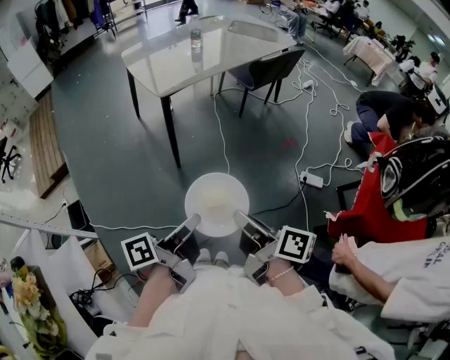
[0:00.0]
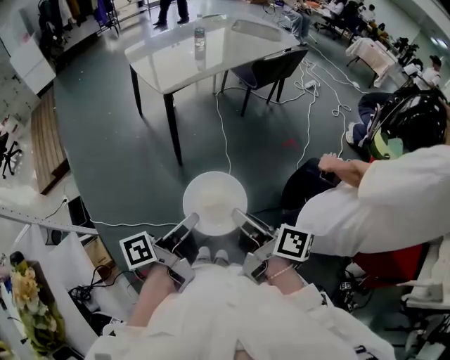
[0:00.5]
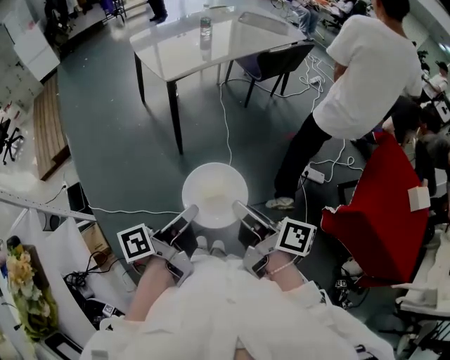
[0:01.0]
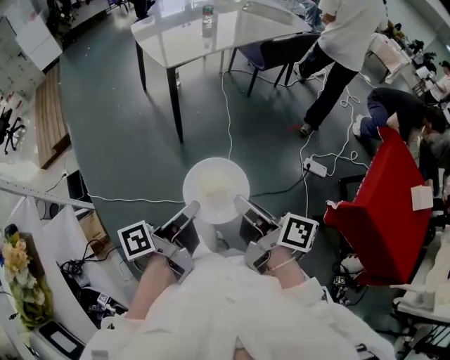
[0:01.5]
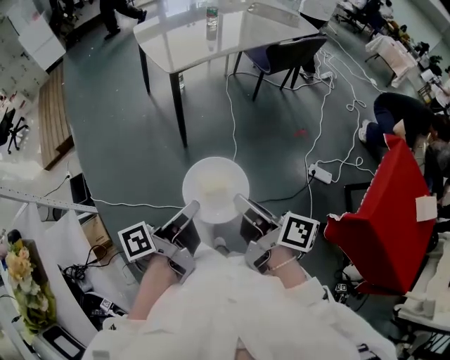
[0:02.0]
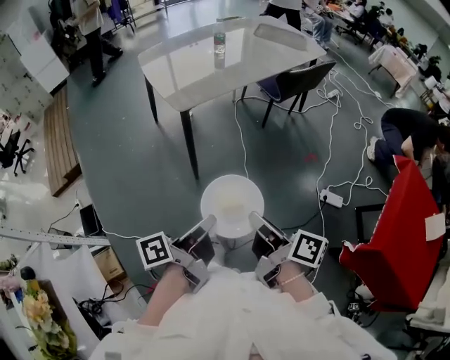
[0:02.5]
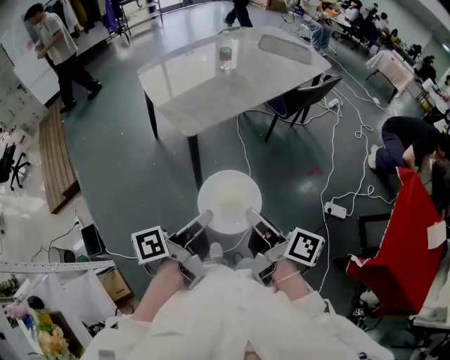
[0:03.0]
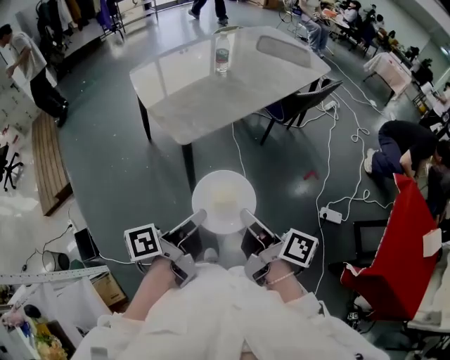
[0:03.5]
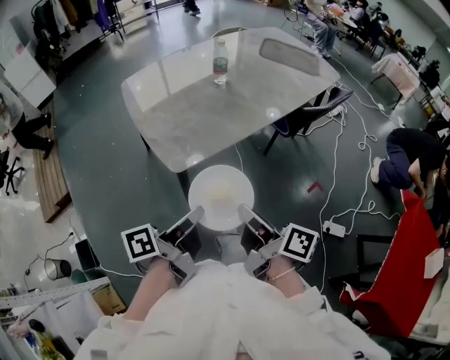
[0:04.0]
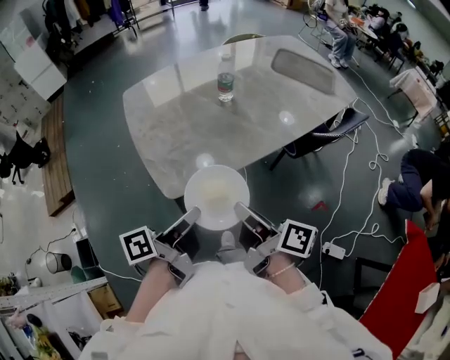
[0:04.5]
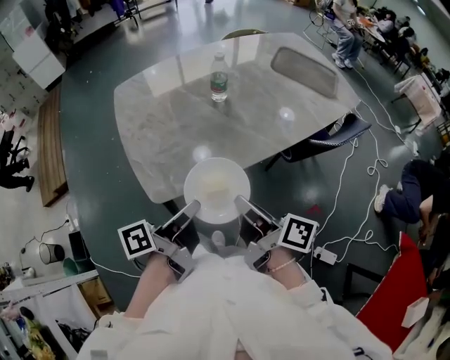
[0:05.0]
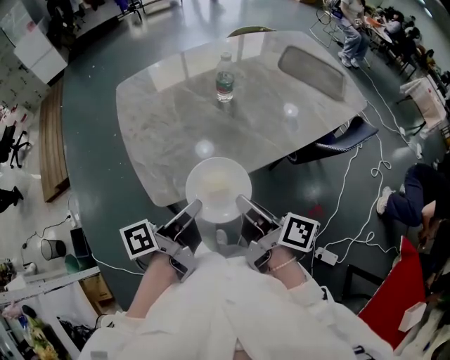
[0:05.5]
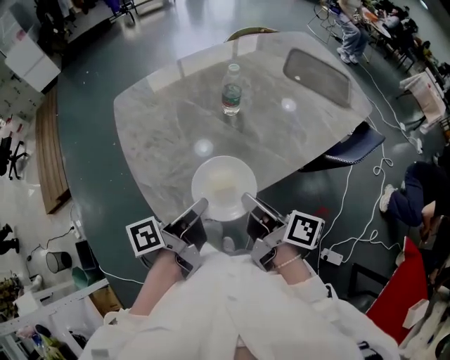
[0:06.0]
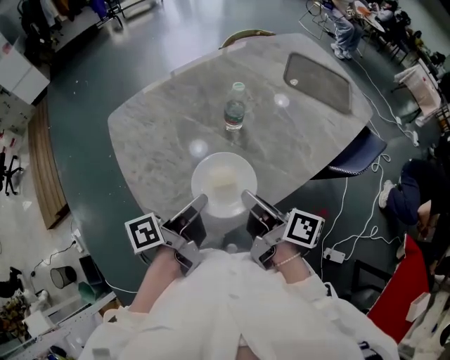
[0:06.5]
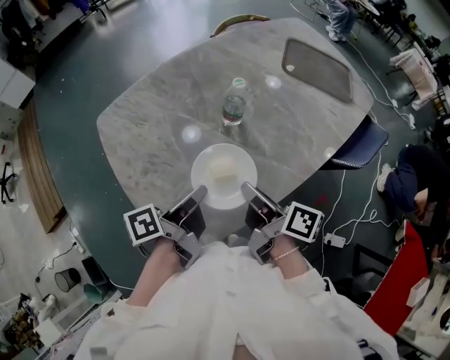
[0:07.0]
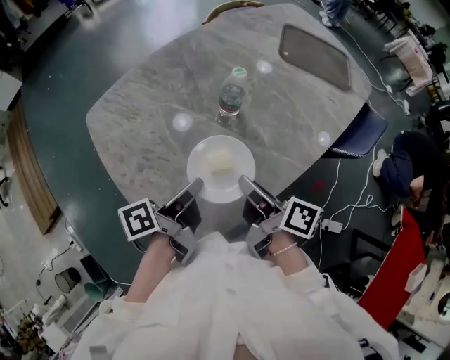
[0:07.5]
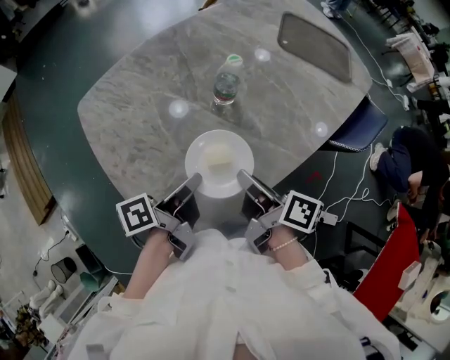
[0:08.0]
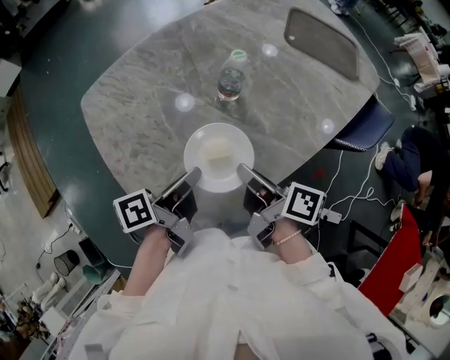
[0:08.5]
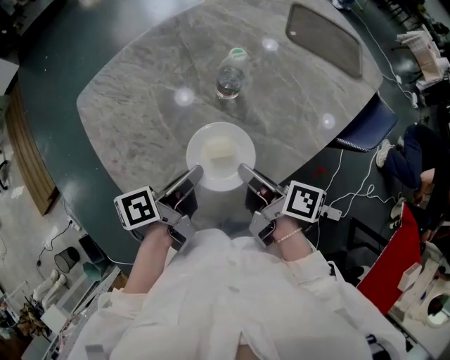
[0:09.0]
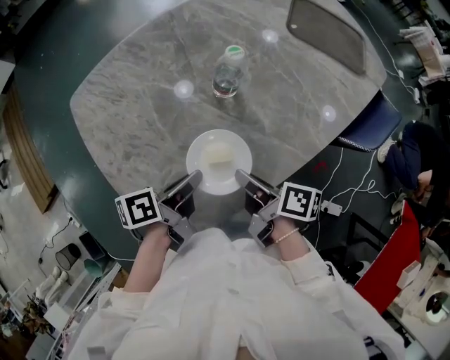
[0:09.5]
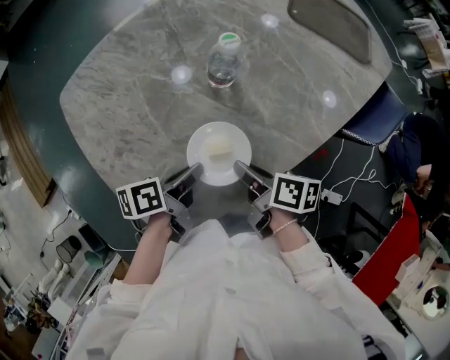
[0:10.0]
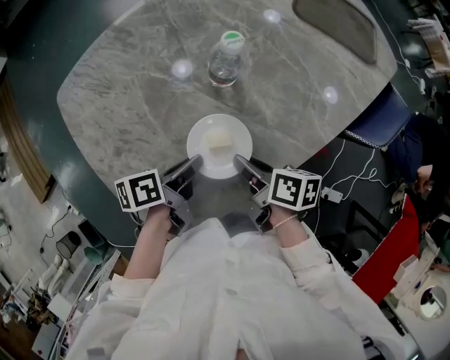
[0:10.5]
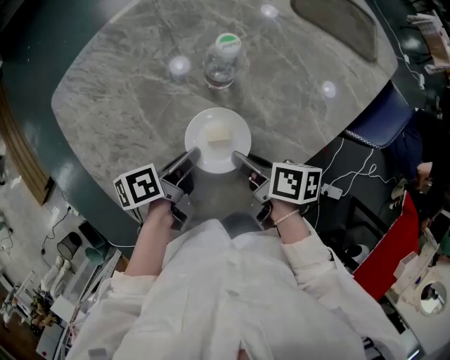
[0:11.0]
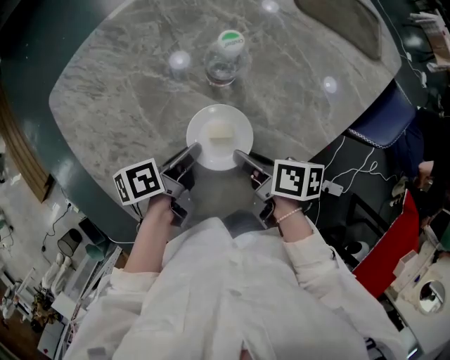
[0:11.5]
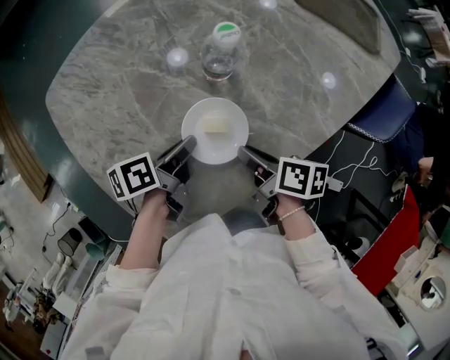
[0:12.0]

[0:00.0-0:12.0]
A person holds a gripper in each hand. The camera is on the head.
0:02.0 to 0:04.0: The right gripper moves roughly 40 cm.
0:04.0 to 0:06.0: The right gripper changes place by about 30 cm.
0:06.0 to 0:08.0: The right gripper ends up some 15 cm from where it was.
0:08.0 to 0:10.0: The right gripper travels downward by some 10 cm.

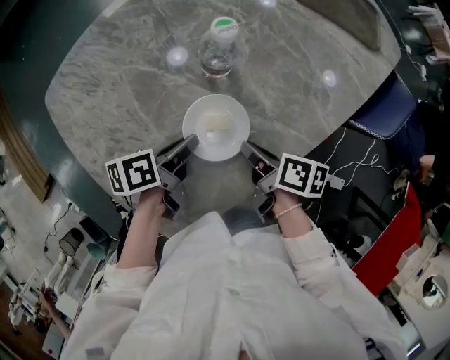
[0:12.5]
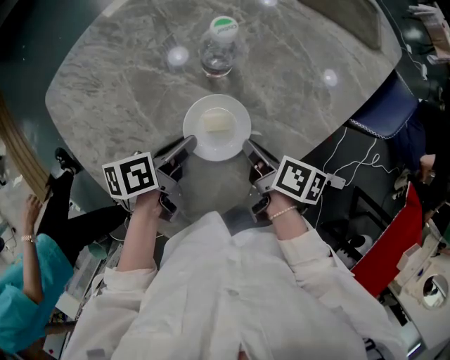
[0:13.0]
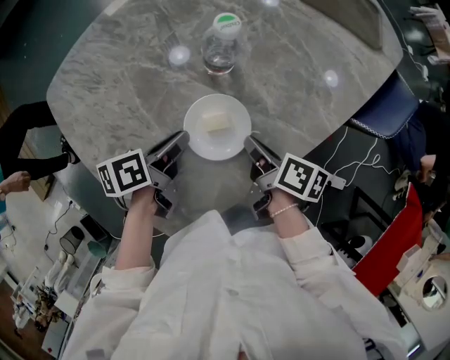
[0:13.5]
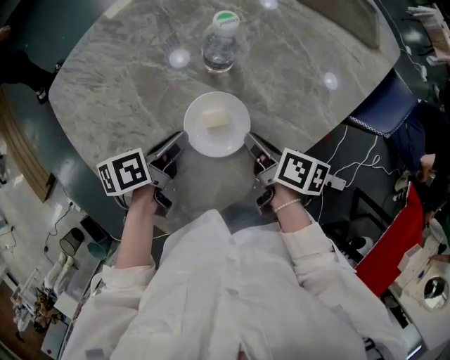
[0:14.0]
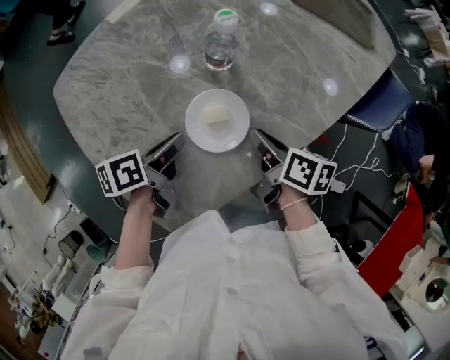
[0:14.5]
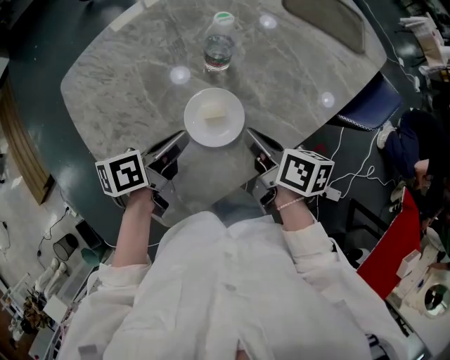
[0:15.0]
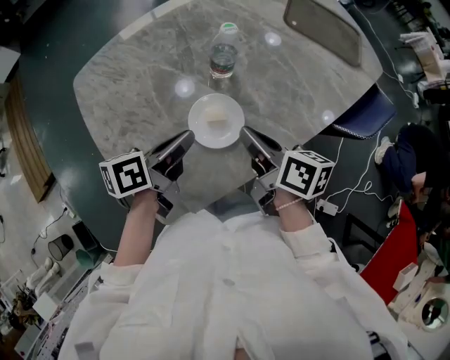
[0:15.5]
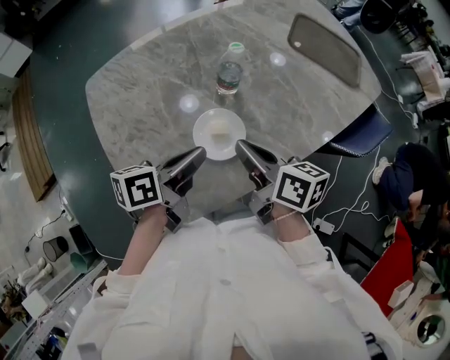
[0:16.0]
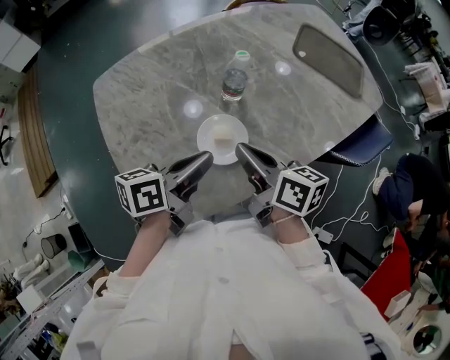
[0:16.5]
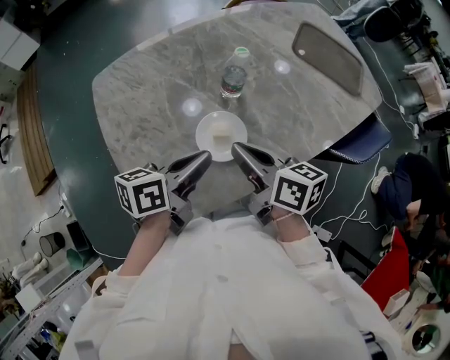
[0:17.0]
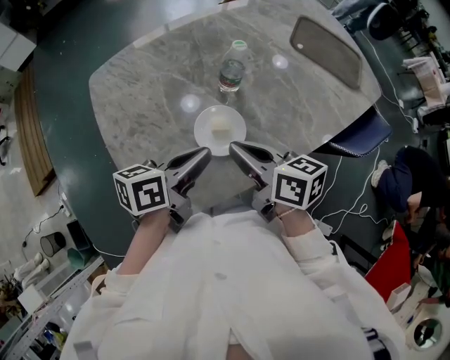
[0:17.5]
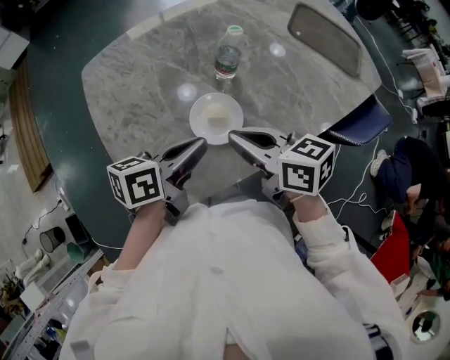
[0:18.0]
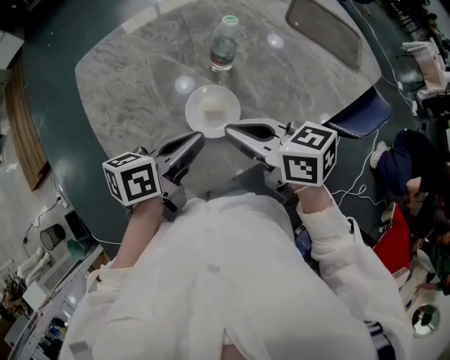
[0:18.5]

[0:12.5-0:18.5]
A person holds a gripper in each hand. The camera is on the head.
0:14.5 to 0:16.5: The right gripper moves upward, about 15 cm, and swivels some 30 degrees.
0:16.5 to 0:18.5: The right gripper swivels some 30 degrees.

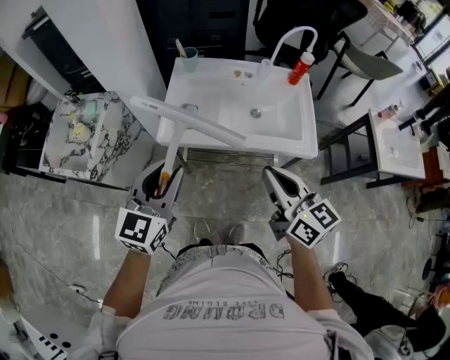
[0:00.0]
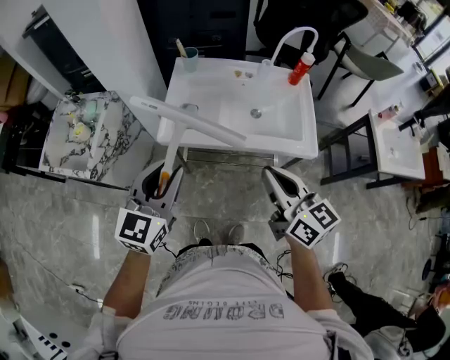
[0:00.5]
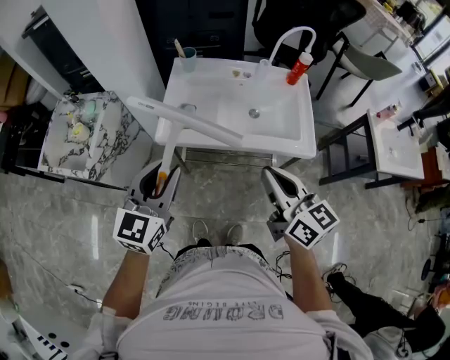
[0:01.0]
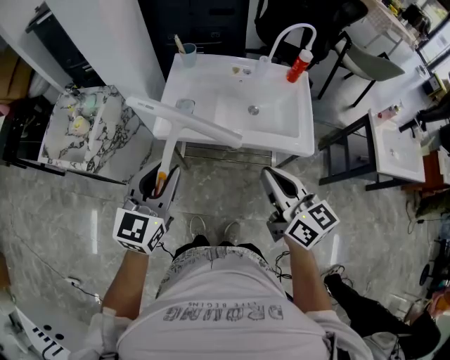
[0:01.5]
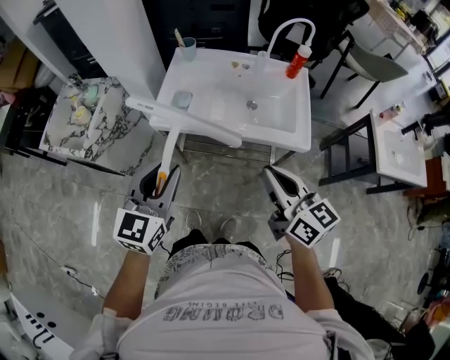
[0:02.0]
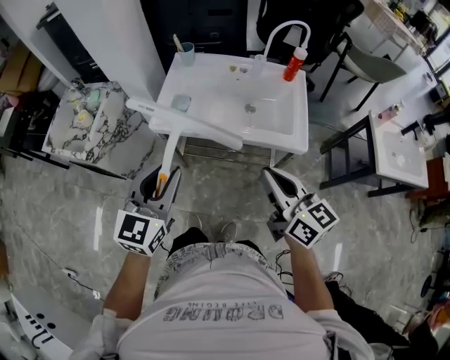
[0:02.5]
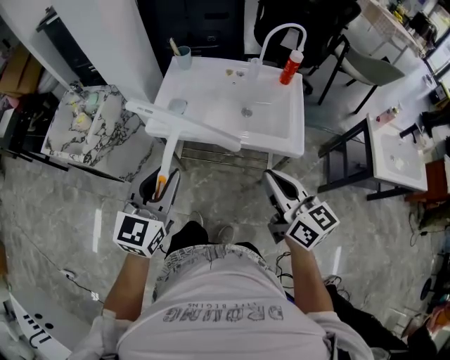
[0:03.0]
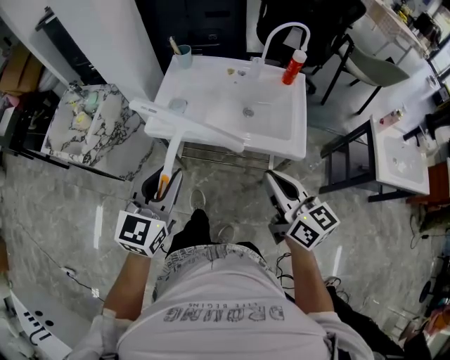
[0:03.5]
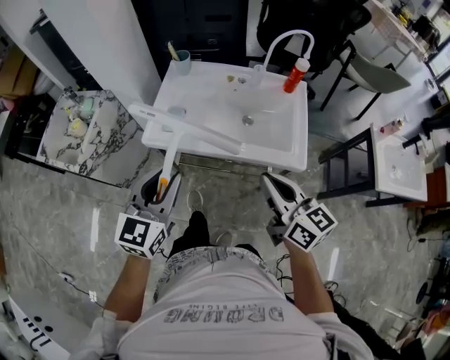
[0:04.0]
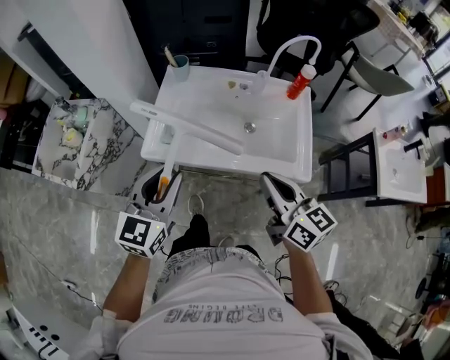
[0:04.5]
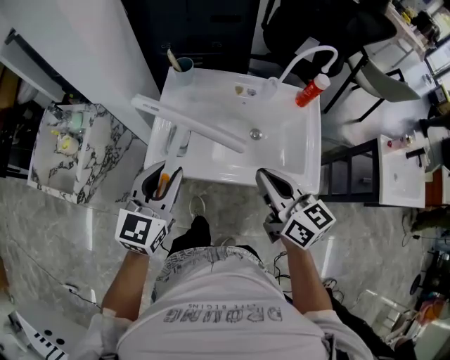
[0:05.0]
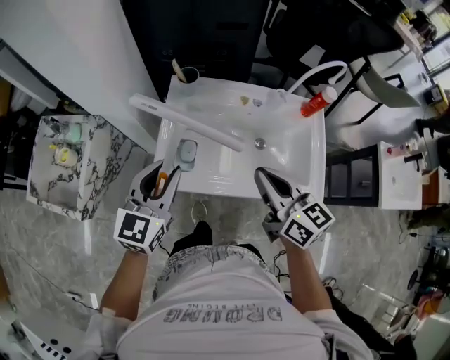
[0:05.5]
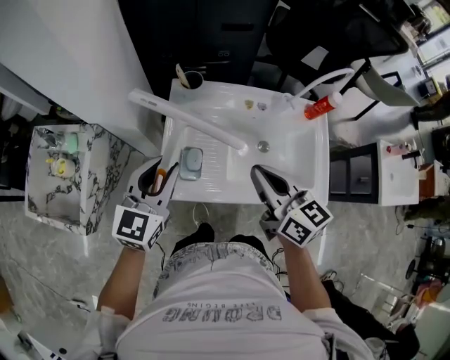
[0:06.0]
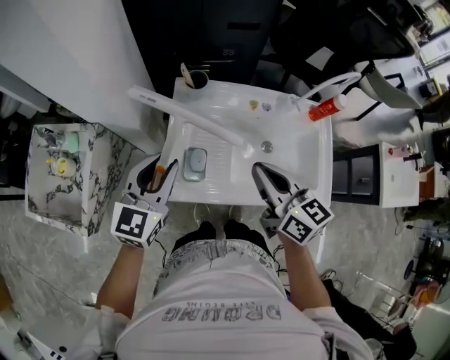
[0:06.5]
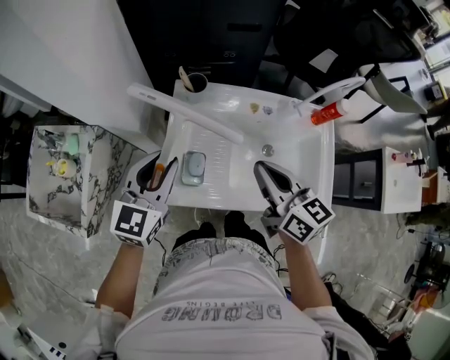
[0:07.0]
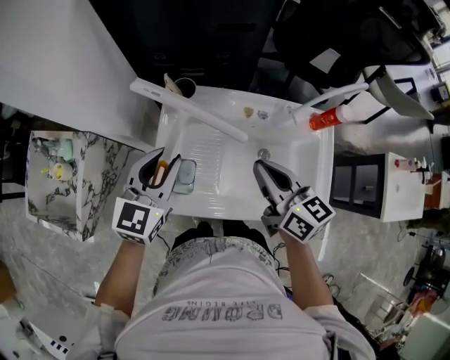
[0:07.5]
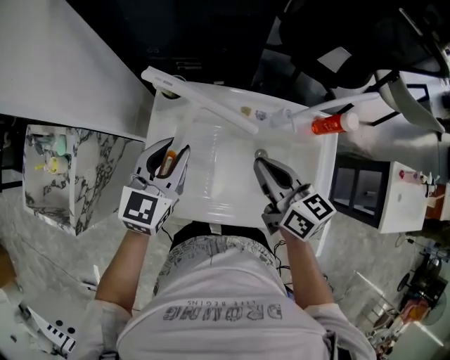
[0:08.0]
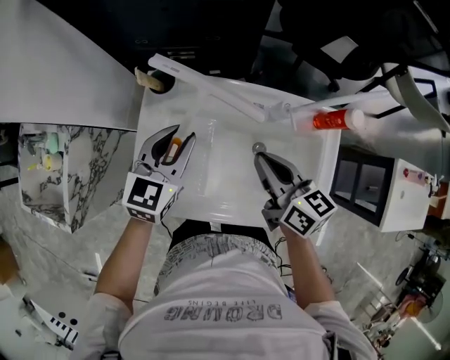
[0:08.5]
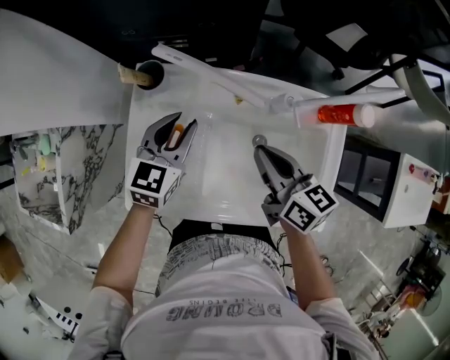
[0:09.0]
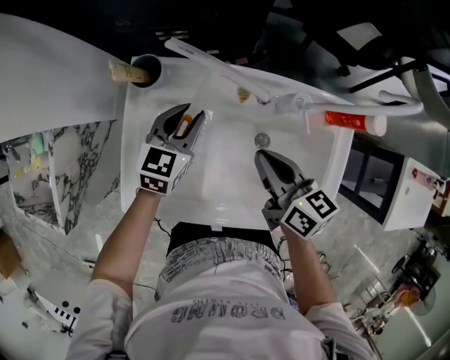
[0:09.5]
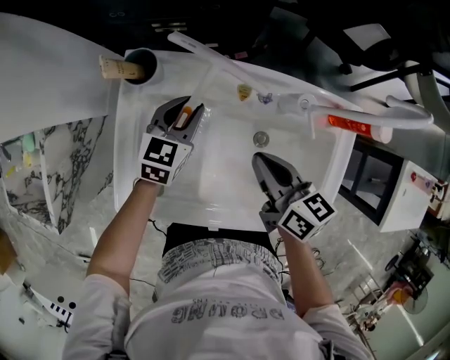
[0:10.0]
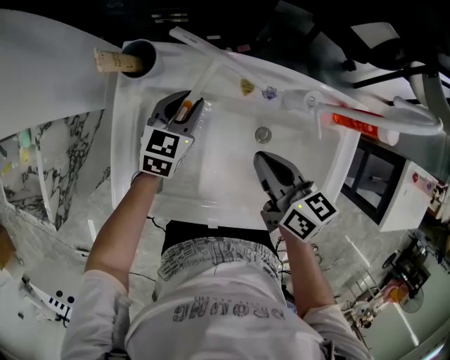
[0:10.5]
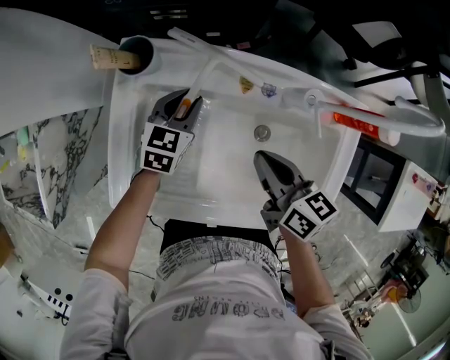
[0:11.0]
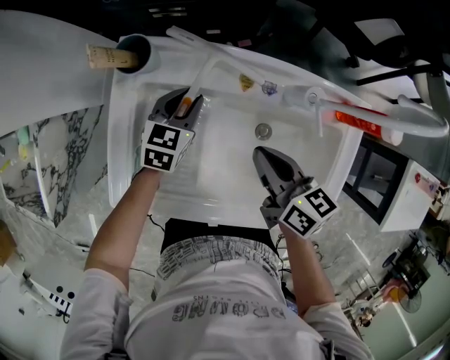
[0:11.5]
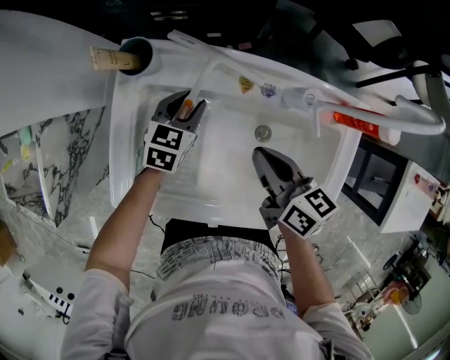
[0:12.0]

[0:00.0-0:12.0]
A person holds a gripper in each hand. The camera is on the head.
0:00.0 to 0:02.0: The left gripper shifts approximately 5 cm backward; the right gripper is displaced to the right by some 5 cm.
0:02.0 to 0:04.0: Both grippers travel together forward, some 5 cm.
0:04.0 to 0:06.0: The left gripper is displaced forward by roughly 30 cm. The right gripper travels forward and to the left by approximately 30 cm.
0:06.0 to 0:08.0: The right gripper moves forward, to the right and downward, approximately 15 cm. Meanwhile the left gripper travels forward and to the right by some 15 cm.
0:08.0 to 0:10.0: The right gripper moves downward, about 10 cm. Meanwhile the left gripper heads downward and forward, covering roughly 20 cm.
0:10.0 to 0:12.0: The left gripper heads downward, covering some 5 cm.
